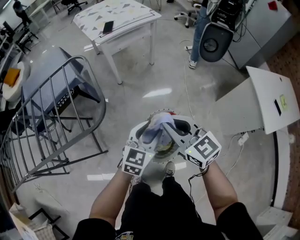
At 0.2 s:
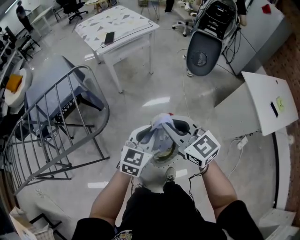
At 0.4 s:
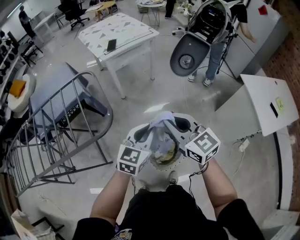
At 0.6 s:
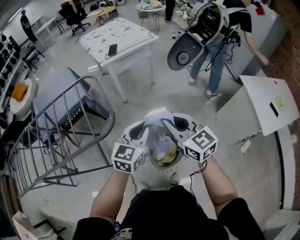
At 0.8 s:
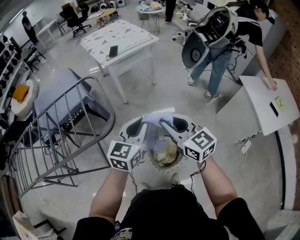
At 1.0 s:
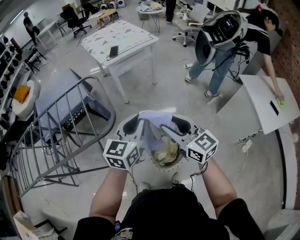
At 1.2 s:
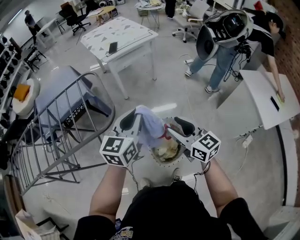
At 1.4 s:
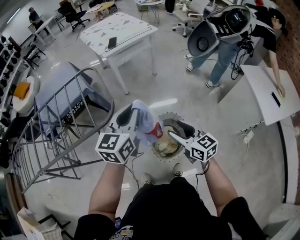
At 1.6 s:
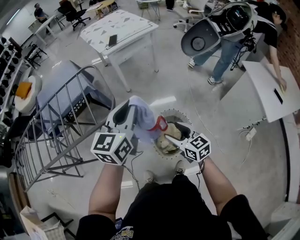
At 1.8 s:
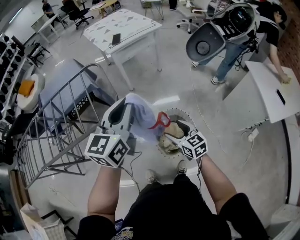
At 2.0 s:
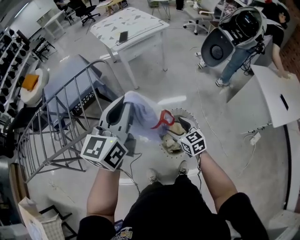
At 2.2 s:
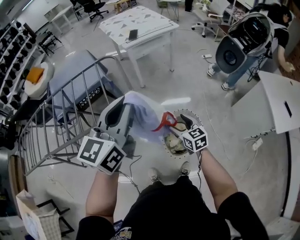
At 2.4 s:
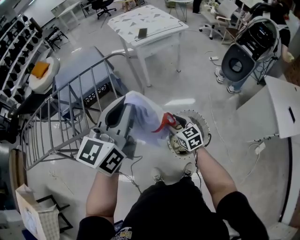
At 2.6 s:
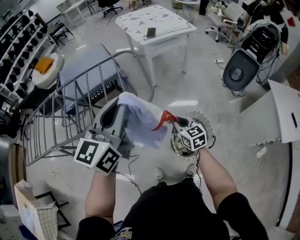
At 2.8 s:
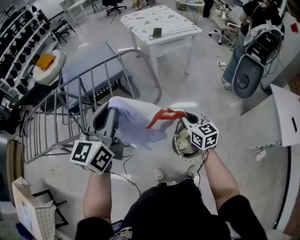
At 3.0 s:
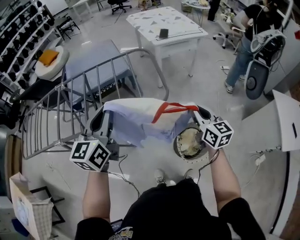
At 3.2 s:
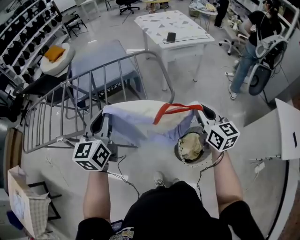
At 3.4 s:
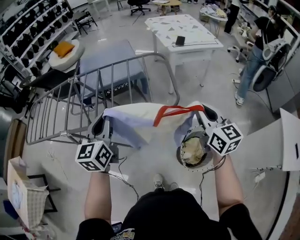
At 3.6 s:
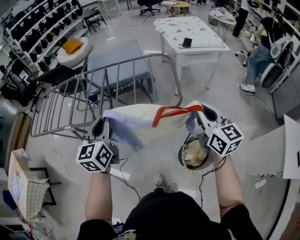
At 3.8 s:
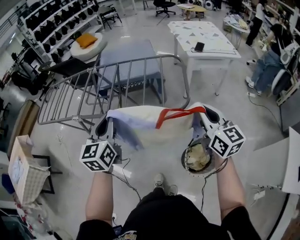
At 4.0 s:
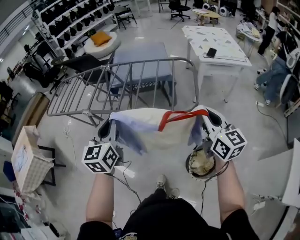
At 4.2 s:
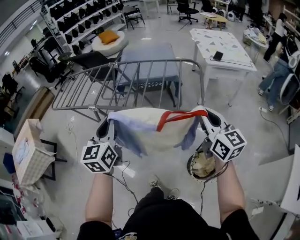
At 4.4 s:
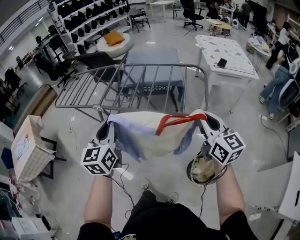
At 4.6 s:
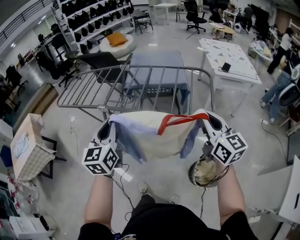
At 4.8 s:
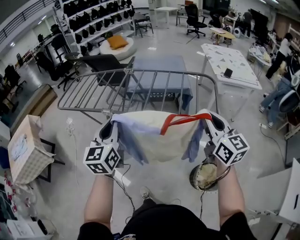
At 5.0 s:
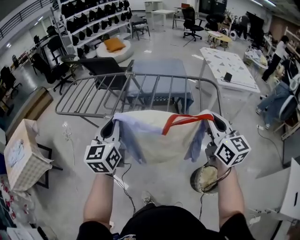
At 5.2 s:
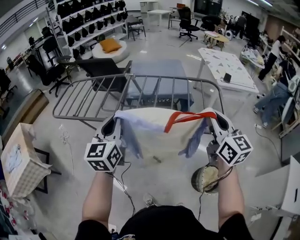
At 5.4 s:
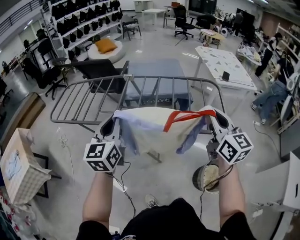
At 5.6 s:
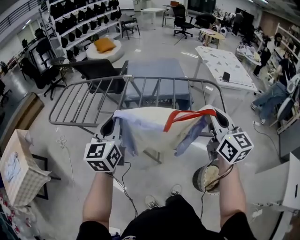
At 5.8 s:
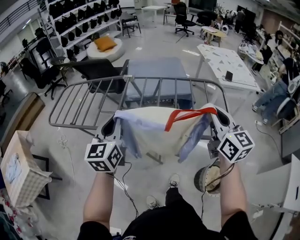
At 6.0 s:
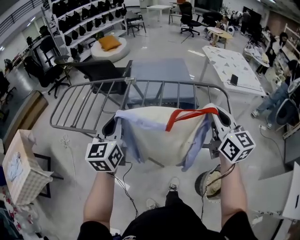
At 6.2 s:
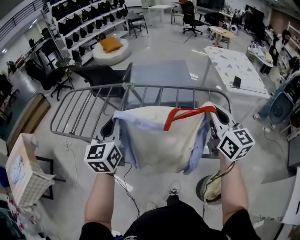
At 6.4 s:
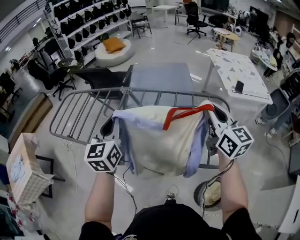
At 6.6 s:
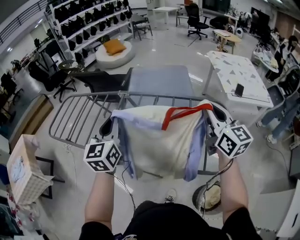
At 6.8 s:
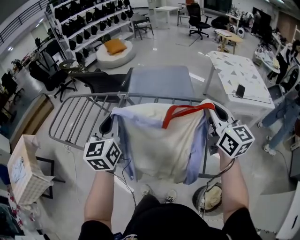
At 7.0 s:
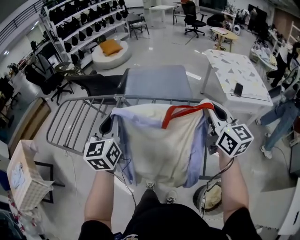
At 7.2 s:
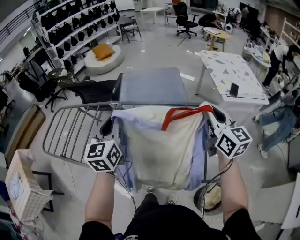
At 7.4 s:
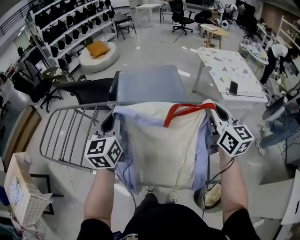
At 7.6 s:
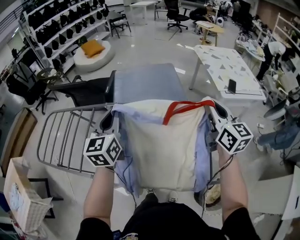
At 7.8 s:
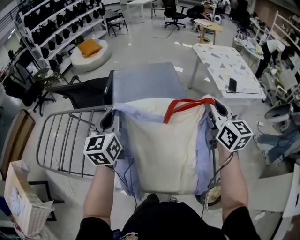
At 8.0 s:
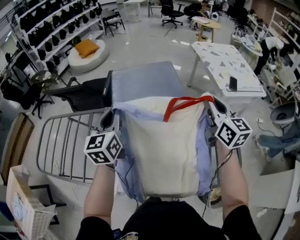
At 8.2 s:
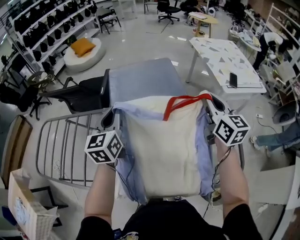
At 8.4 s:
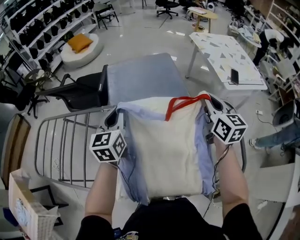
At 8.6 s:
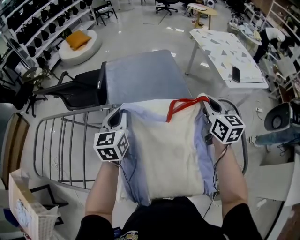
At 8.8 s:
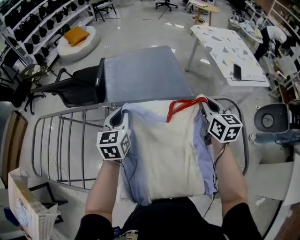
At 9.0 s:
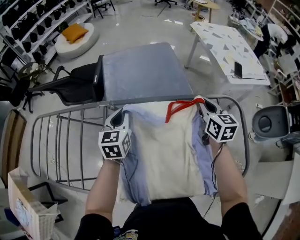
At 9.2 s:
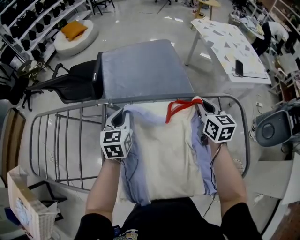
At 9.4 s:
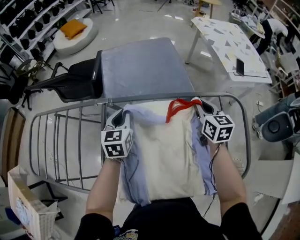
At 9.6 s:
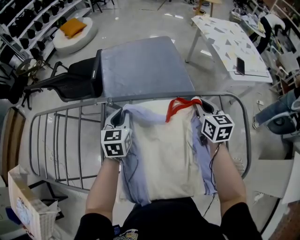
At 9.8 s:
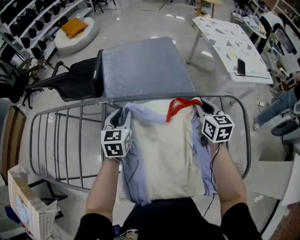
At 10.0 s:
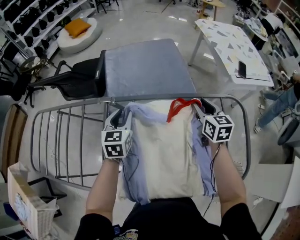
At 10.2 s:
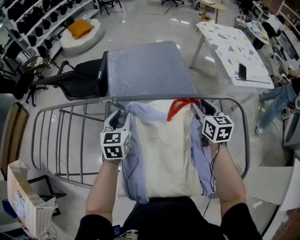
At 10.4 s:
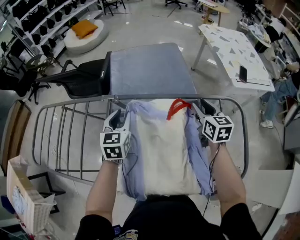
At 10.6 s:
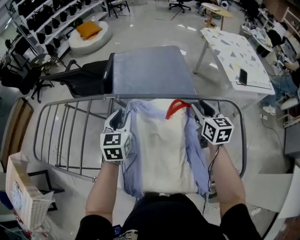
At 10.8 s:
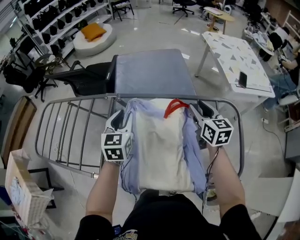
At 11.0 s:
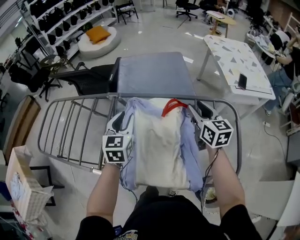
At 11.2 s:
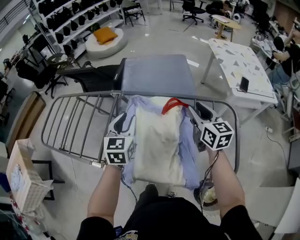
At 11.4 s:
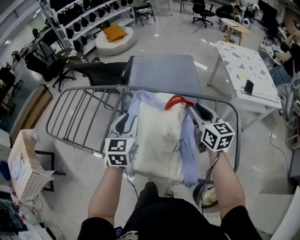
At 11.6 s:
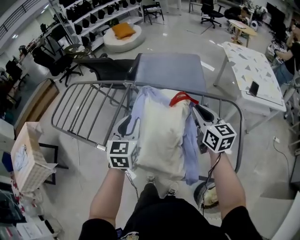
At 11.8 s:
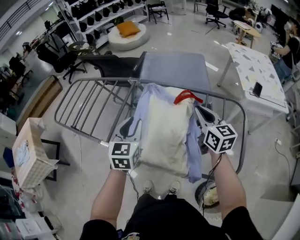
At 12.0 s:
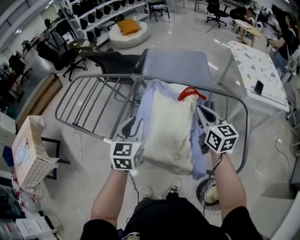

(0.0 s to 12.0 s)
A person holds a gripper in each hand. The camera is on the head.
0.0 s - 1.6 s: The right gripper heads downward and backward, covering some 10 cm, and opens up; the left gripper travels upward by roughly 20 cm, turns by roughly 20 degrees, and closes.
1.6 s - 3.0 s: The right gripper goes approximately 20 cm to the left, forward and upward, and closes its fingers. The left gripper shifts approximately 35 cm to the left, and rotates roughly 20 degrees.
3.0 s - 4.4 s: The left gripper changes place by roughly 20 cm, and turns by roughly 40 degrees, while the right gripper shifts by some 20 cm, and swivels roughly 30 degrees.
4.4 s - 6.0 s: Both grippers travel together forward and to the left, roughly 25 cm.
6.0 s - 7.6 s: The right gripper moves forward and to the right, roughly 25 cm. The left gripper shifts about 25 cm forward.
7.6 s - 9.0 s: The grippers both shift downward and forward by some 20 cm. The left gripper rotates roughly 20 degrees; the right gripper turns by some 20 degrees.
9.0 s - 10.4 s: The right gripper opens. Meanwhile the left gripper opens up.
10.4 s - 12.0 s: The right gripper shifts about 20 cm backward, upward and to the left, rotates approximately 30 degrees, and closes; the left gripper goes roughly 25 cm backward.

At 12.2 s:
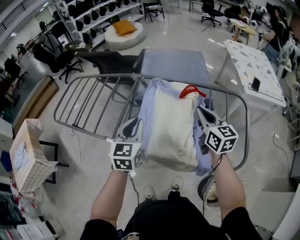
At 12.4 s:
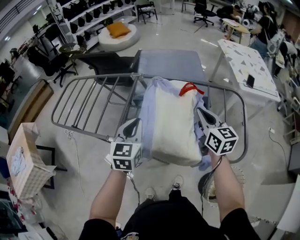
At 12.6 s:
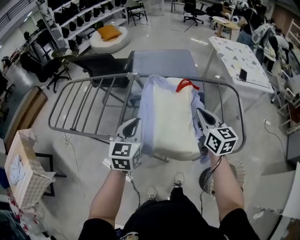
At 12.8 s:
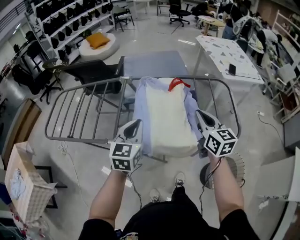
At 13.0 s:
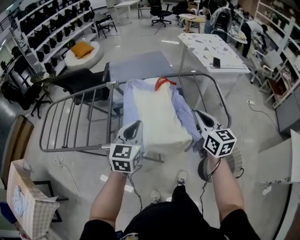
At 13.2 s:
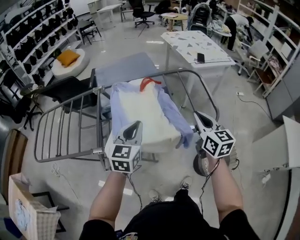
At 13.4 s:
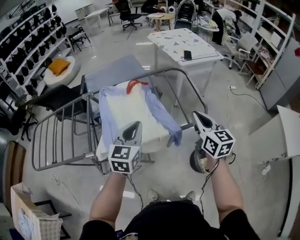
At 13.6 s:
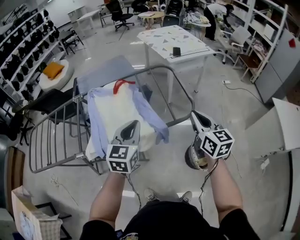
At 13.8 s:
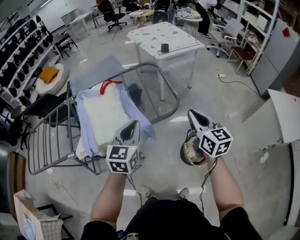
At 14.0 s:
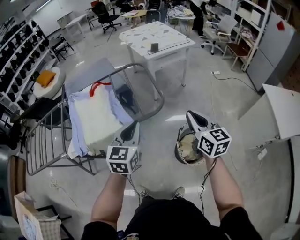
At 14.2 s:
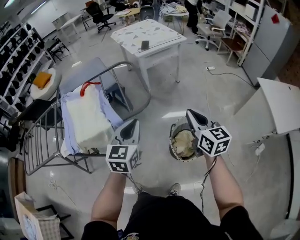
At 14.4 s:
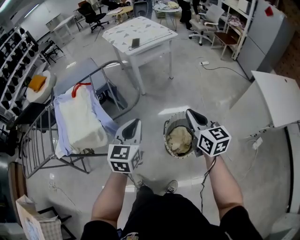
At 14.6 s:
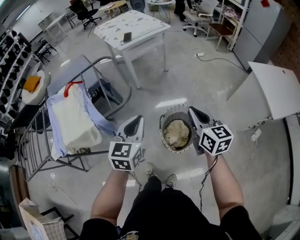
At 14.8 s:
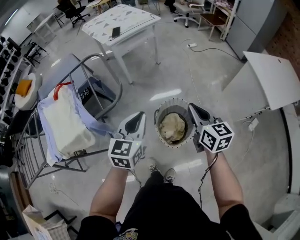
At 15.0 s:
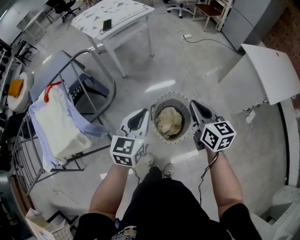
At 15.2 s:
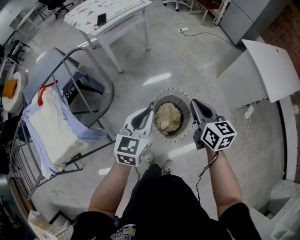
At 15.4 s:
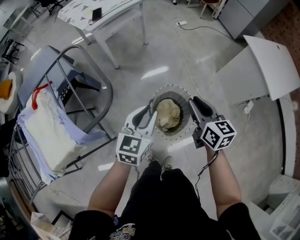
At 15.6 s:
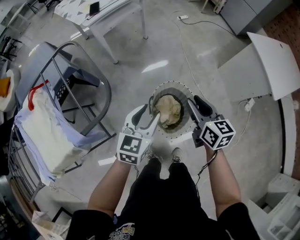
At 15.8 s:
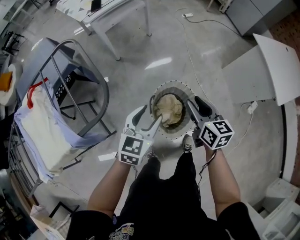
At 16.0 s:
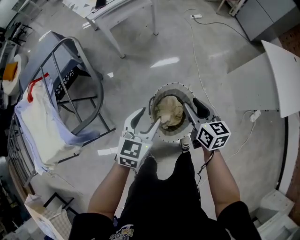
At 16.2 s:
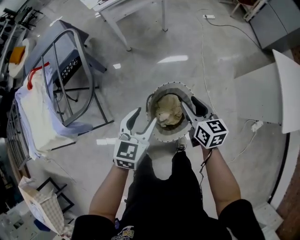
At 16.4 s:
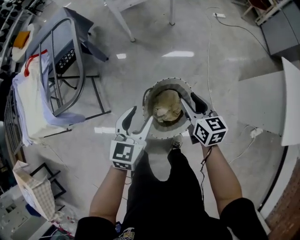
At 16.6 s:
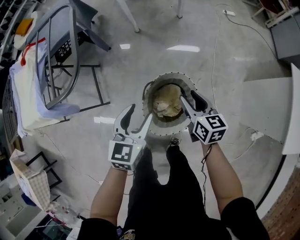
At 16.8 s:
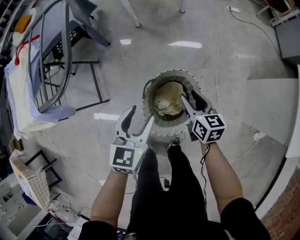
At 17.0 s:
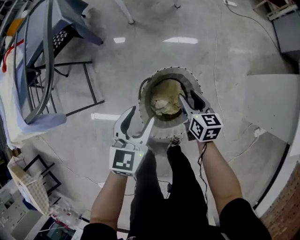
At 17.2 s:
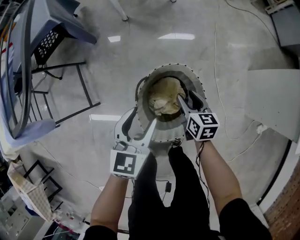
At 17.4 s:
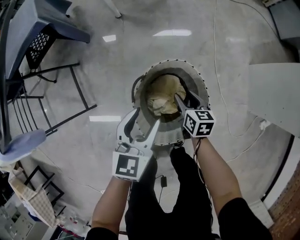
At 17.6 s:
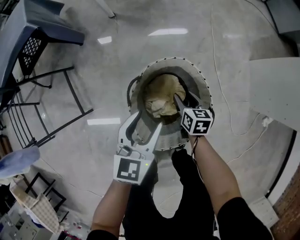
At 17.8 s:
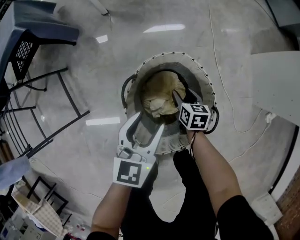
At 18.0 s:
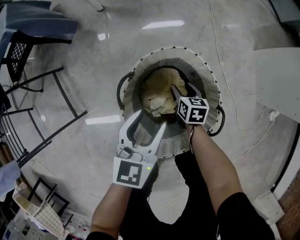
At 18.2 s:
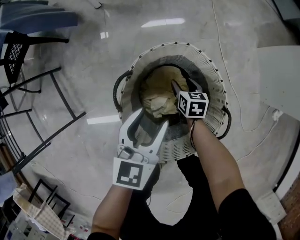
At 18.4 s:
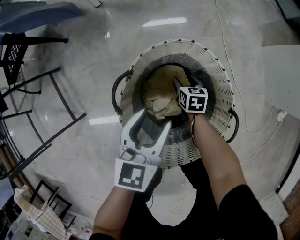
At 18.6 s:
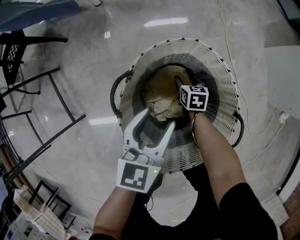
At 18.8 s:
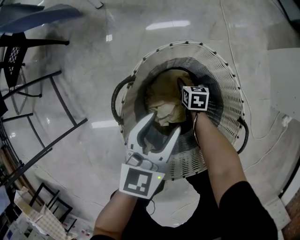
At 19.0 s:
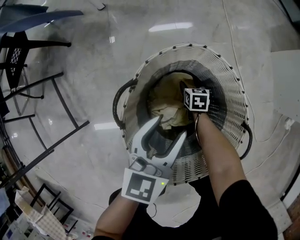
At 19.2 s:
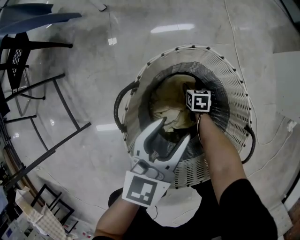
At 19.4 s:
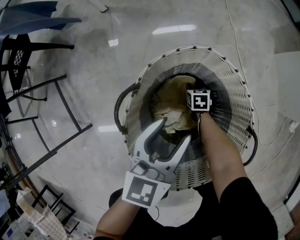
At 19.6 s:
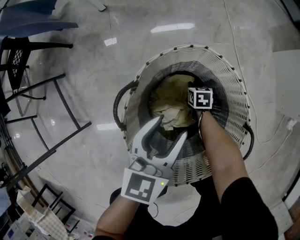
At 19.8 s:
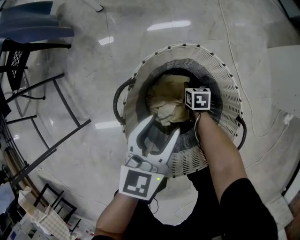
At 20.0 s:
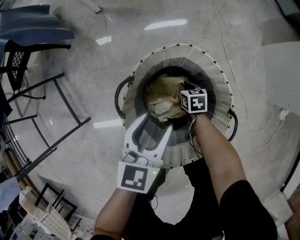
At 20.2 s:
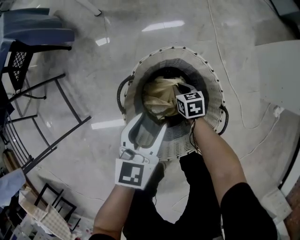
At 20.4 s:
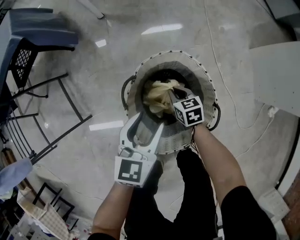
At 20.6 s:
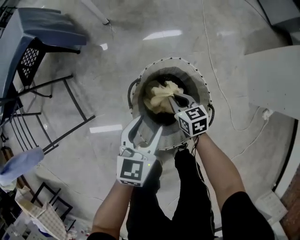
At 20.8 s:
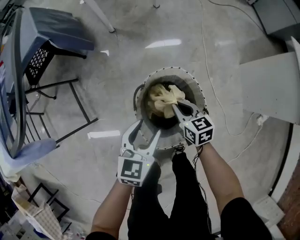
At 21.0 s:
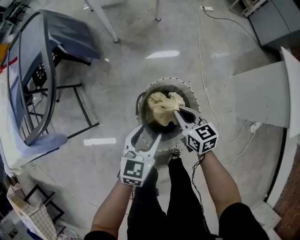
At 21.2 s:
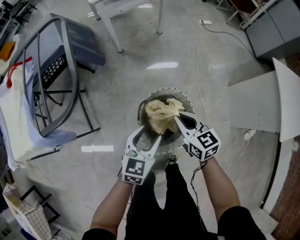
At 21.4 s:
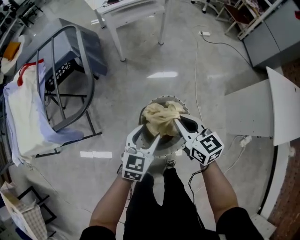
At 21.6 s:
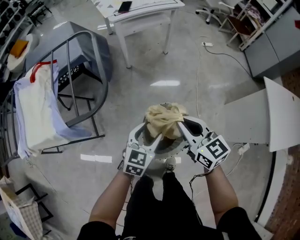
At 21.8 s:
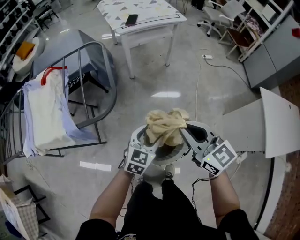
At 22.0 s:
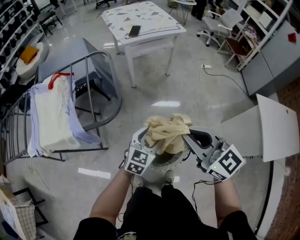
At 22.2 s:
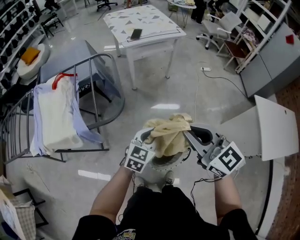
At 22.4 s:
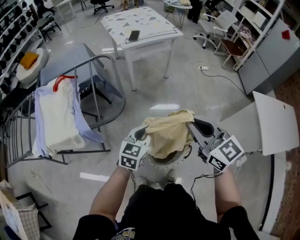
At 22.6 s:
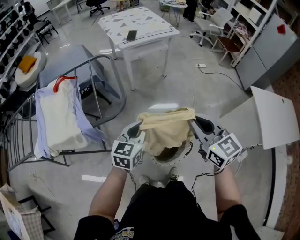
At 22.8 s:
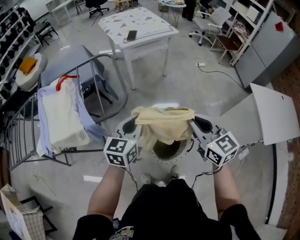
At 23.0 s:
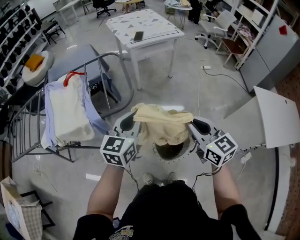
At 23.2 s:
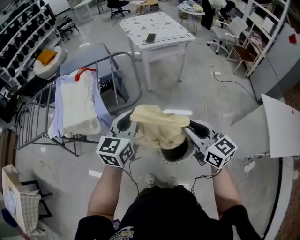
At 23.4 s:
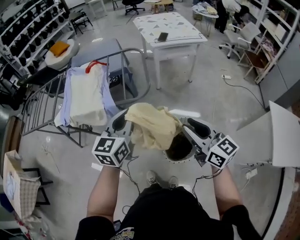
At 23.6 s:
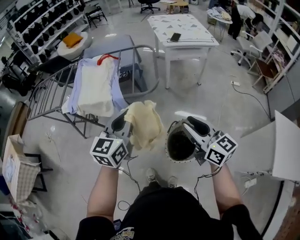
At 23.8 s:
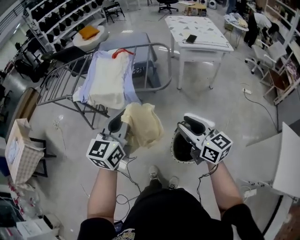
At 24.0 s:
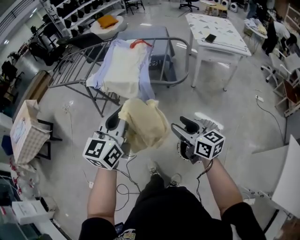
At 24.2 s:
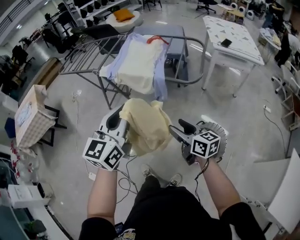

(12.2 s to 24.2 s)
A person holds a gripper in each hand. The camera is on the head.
12.2 s - 13.8 s: The right gripper changes place by some 40 cm, and turns by some 30 degrees. Meanwhile the left gripper shifts by approximately 35 cm, and changes its angle by about 40 degrees.
13.8 s - 15.2 s: The left gripper travels to the right by some 35 cm, and swivels approximately 30 degrees. The right gripper shifts roughly 30 cm to the right and downward, and changes its angle by roughly 20 degrees.
15.2 s - 16.6 s: Both grippers move downward, approximately 20 cm. The left gripper changes its angle by approximately 30 degrees, and opens up; the right gripper swivels about 30 degrees, and opens up.
16.6 s - 18.2 s: The left gripper travels downward by about 35 cm; the right gripper heads downward, covering about 50 cm, and rotates about 30 degrees.
18.2 s - 19.8 s: The right gripper moves downward, approximately 10 cm, and closes its fingers.
19.8 s - 21.2 s: The left gripper shifts approximately 30 cm upward, while the right gripper shifts approximately 60 cm upward, and tilts its fingers roughly 30 degrees upward.
21.2 s - 22.6 s: The left gripper goes approximately 30 cm upward and to the left, and closes its fingers; the right gripper moves upward, some 35 cm, and rotates about 20 degrees.
22.6 s - 24.2 s: The left gripper moves roughly 40 cm, and swivels some 50 degrees. The right gripper changes place by approximately 30 cm, changes its angle by roughly 50 degrees, and opens up.
